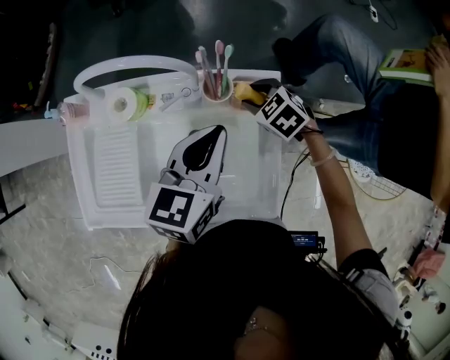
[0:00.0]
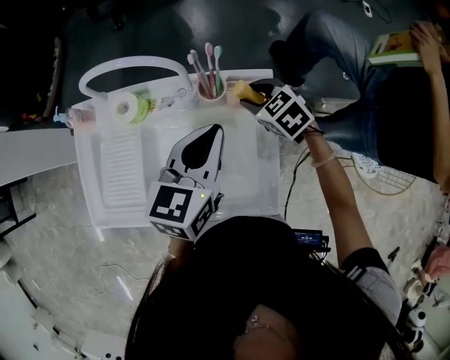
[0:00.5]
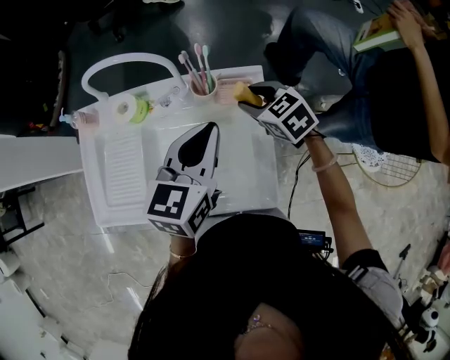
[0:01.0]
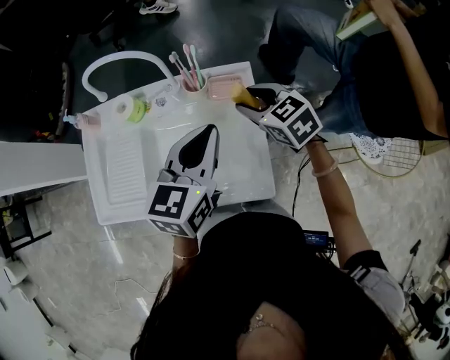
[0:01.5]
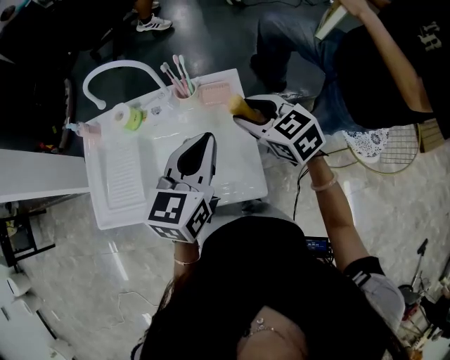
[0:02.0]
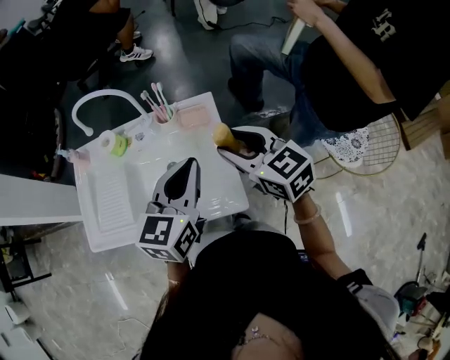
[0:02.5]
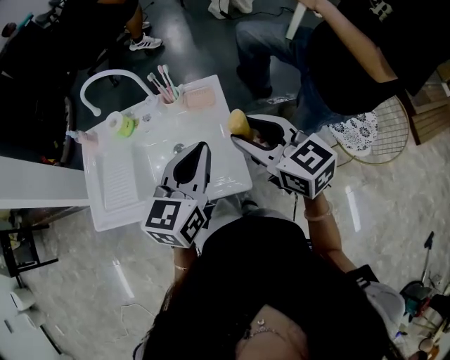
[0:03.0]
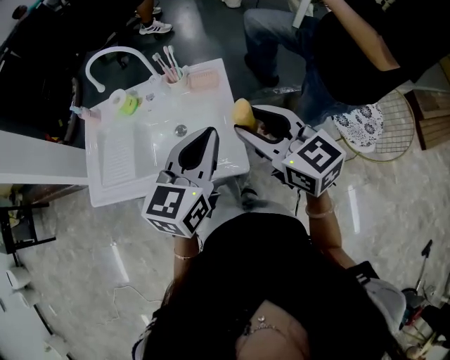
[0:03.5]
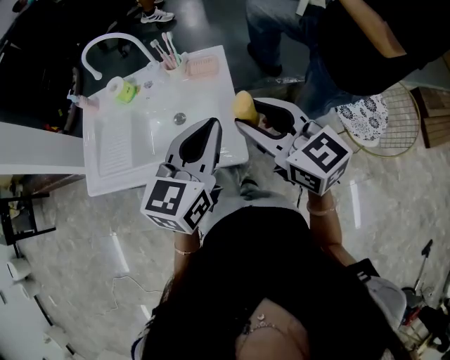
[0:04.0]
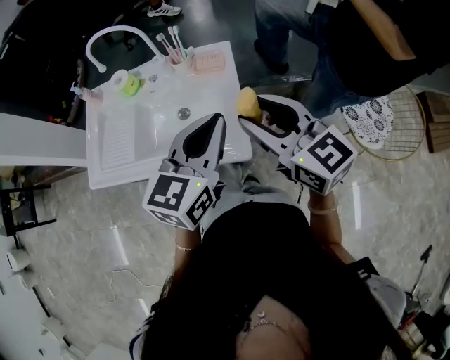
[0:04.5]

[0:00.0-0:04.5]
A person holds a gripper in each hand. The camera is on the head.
0:00.0 to 0:02.0: The left gripper travels backward and upward by about 15 cm. The right gripper heads upward and backward, covering some 25 cm, and rotates approximately 30 degrees.
0:02.0 to 0:04.5: The left gripper heads backward and to the right, covering some 15 cm, while the right gripper goes roughly 20 cm backward and upward, and swivels approximately 20 degrees.

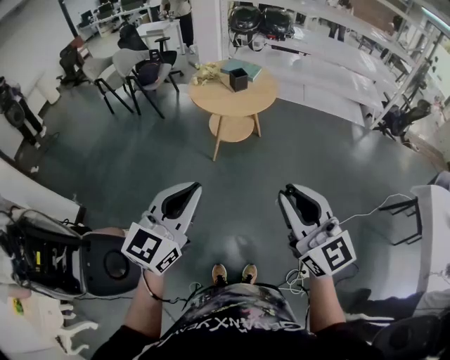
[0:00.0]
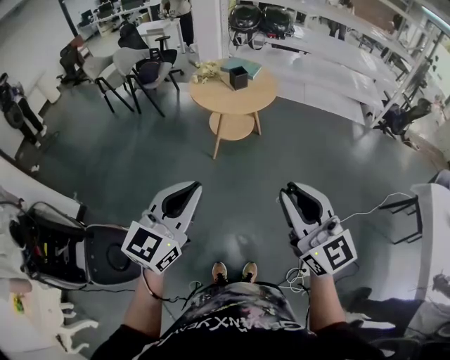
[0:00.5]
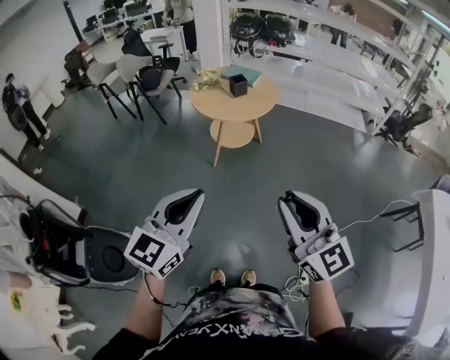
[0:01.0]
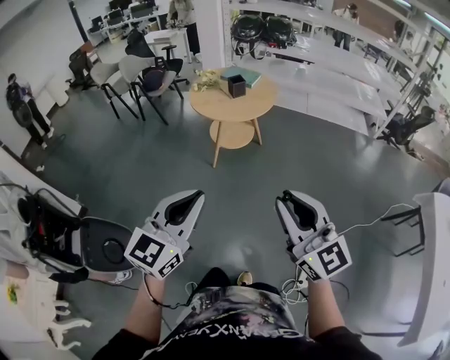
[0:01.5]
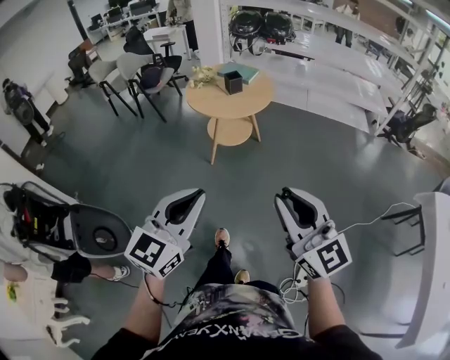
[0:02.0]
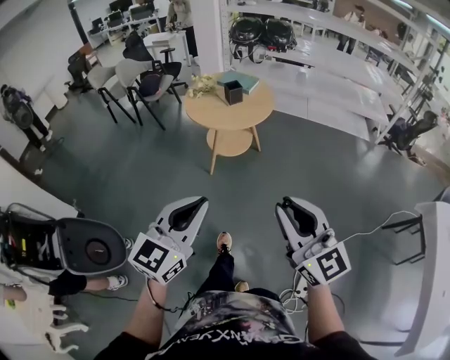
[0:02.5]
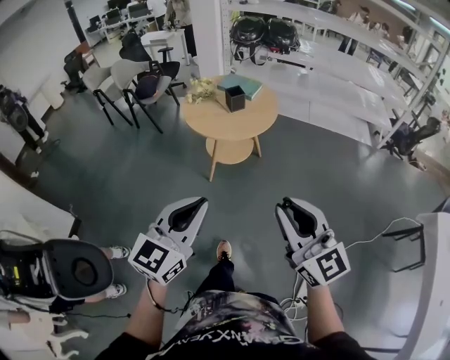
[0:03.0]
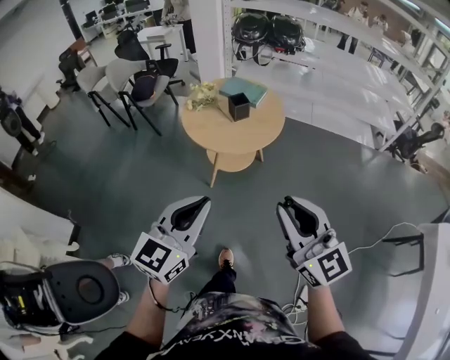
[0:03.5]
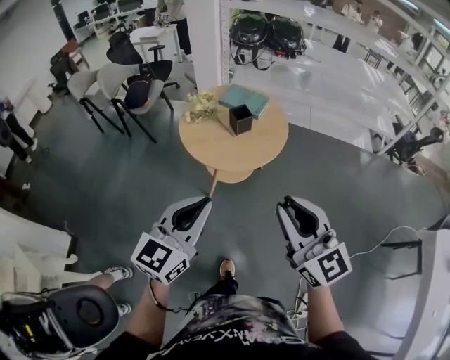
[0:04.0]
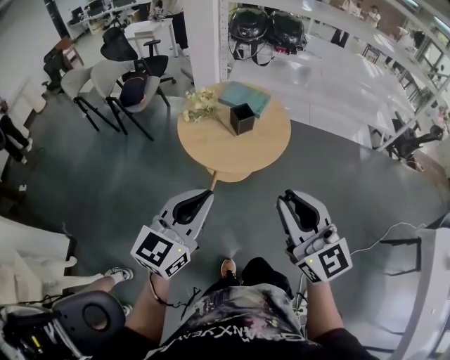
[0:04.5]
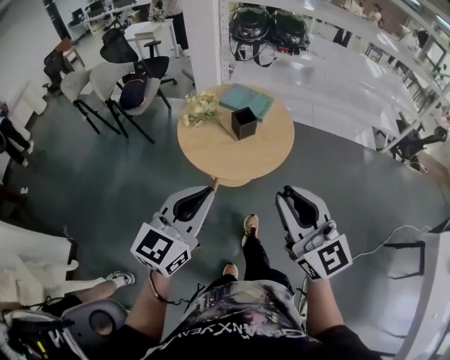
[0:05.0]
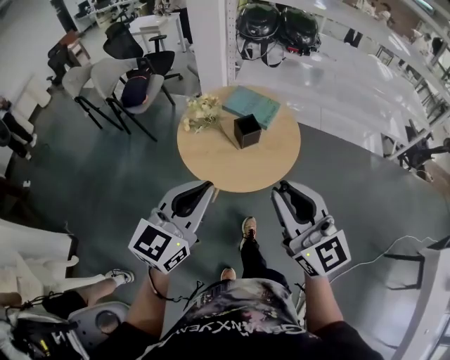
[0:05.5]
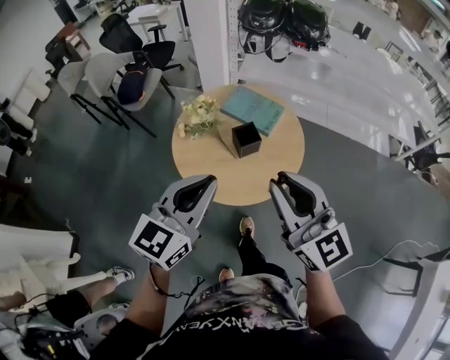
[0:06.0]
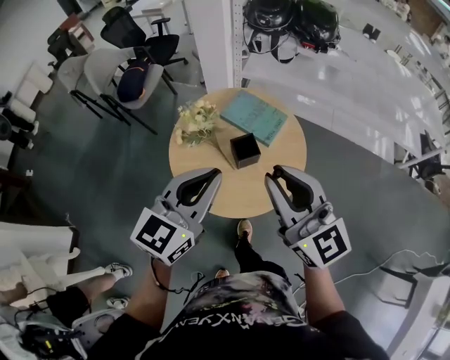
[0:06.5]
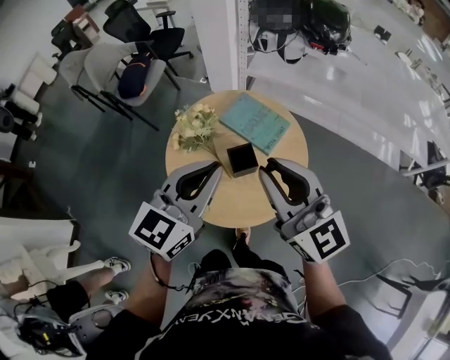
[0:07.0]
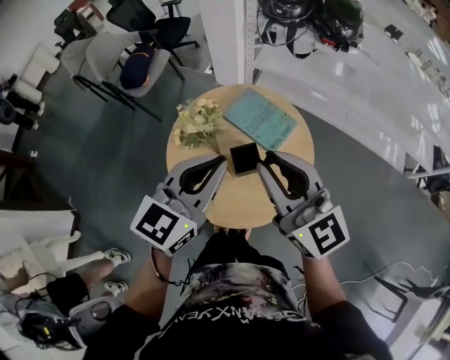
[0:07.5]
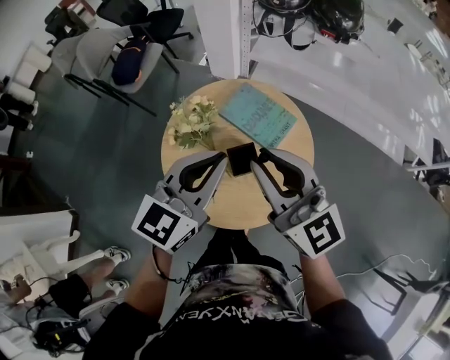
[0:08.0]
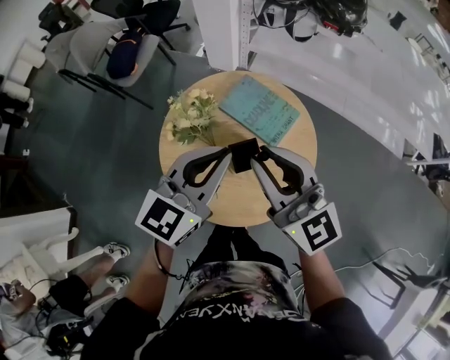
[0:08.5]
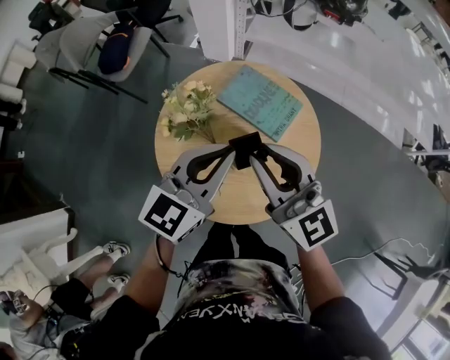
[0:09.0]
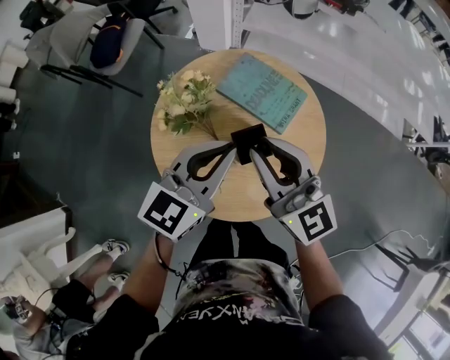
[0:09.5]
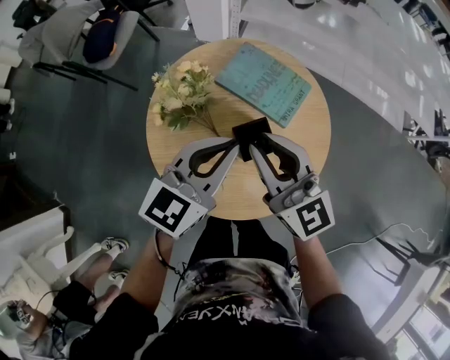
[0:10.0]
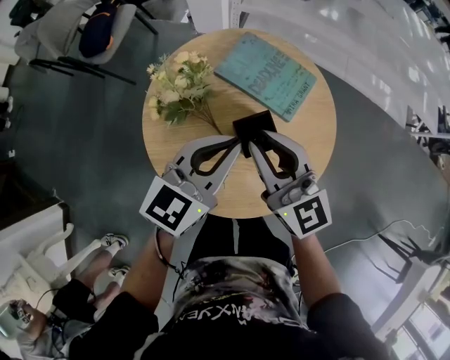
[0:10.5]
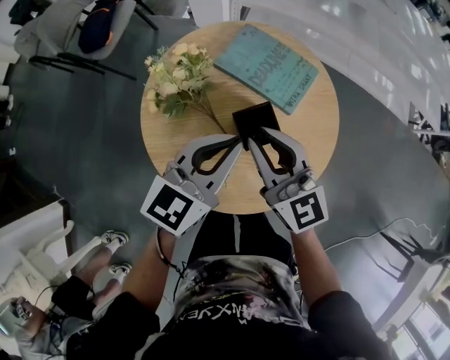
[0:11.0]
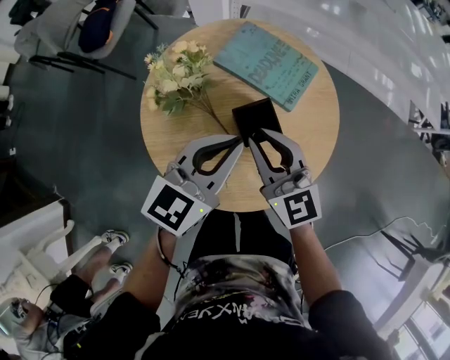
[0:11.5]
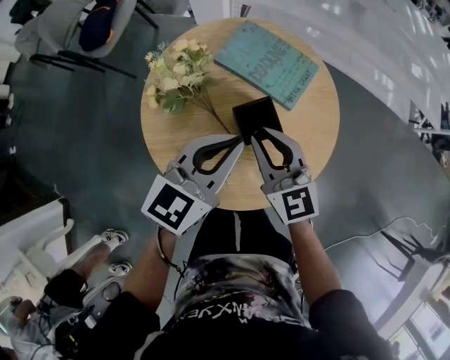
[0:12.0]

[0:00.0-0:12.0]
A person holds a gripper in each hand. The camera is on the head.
0:00.0 to 0:02.0: Both grippers travel together to the right, roughly 10 cm.
0:02.0 to 0:04.0: The two grippers go about 35 cm forward.
0:04.0 to 0:06.0: Both grippers travel together forward, some 30 cm.
0:06.0 to 0:08.0: Both grippers move forward, approximately 20 cm.
0:08.0 to 0:10.0: The two grippers go about 15 cm downward.
0:10.0 to 0:12.0: The right gripper is displaced downward by approximately 10 cm, while the left gripper ends up roughly 5 cm from where it was.

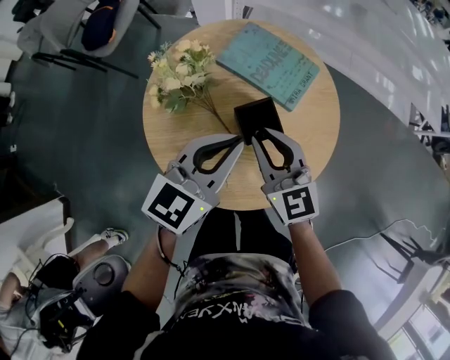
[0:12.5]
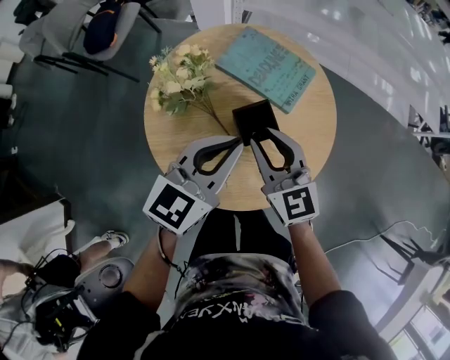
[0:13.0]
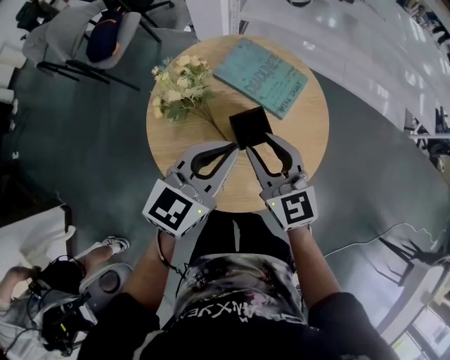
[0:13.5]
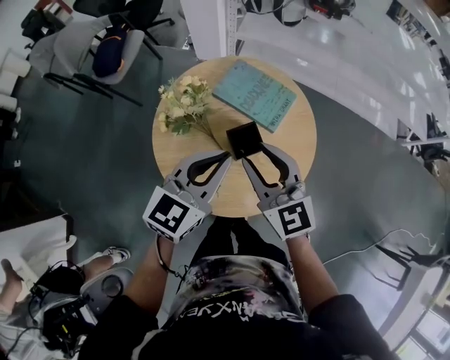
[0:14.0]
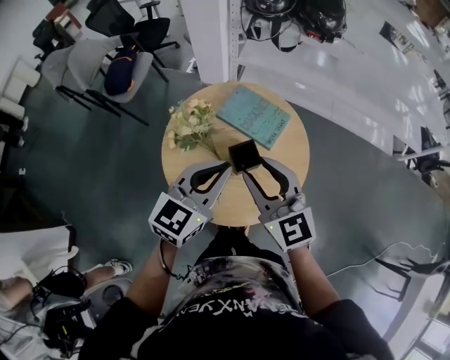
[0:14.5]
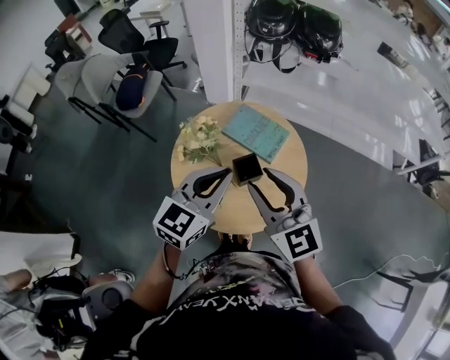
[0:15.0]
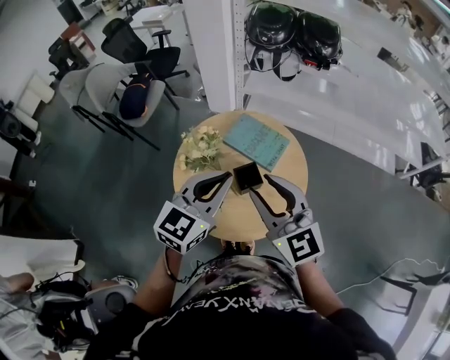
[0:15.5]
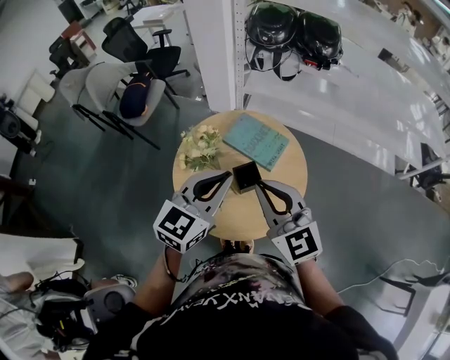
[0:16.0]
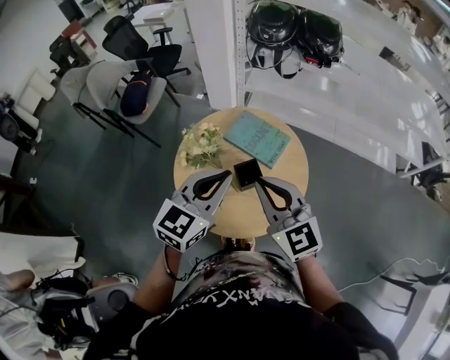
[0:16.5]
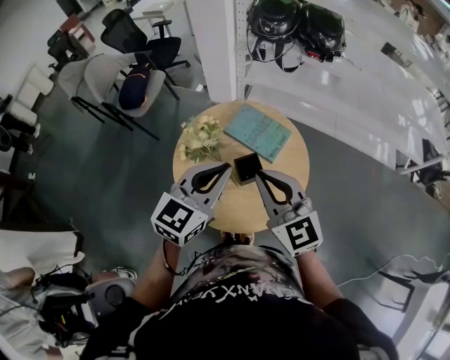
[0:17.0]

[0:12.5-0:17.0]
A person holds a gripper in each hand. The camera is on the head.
0:12.5 to 0:14.5: Both grippers move upward, some 15 cm.
0:14.5 to 0:17.0: The two grippers go approximately 5 cm upward. The right gripper closes.

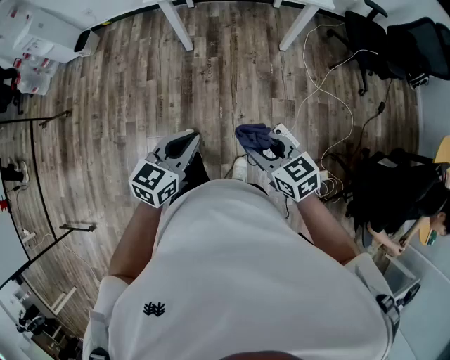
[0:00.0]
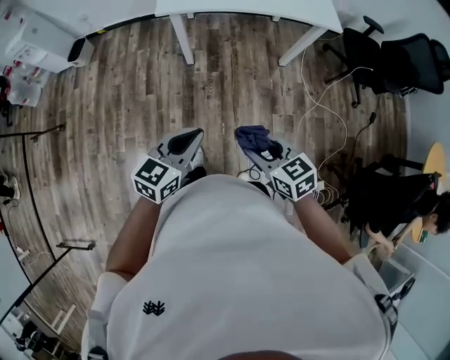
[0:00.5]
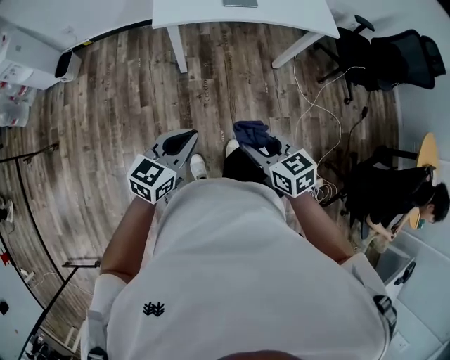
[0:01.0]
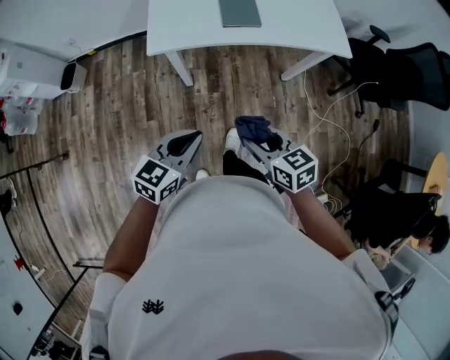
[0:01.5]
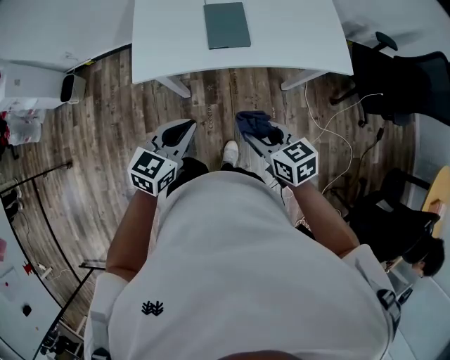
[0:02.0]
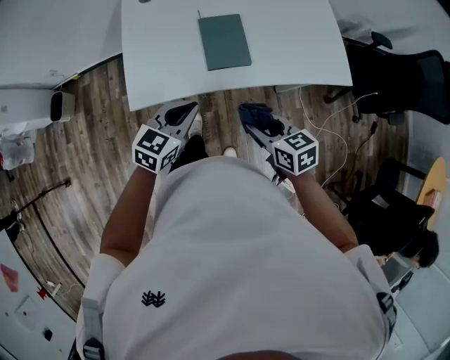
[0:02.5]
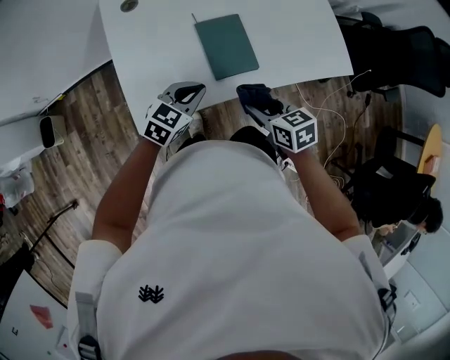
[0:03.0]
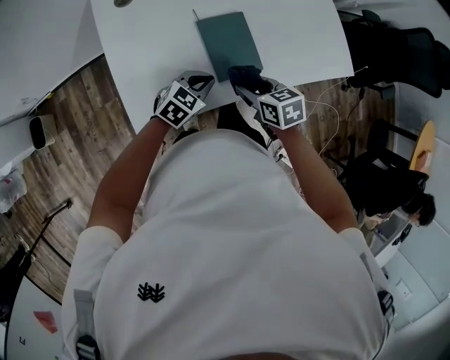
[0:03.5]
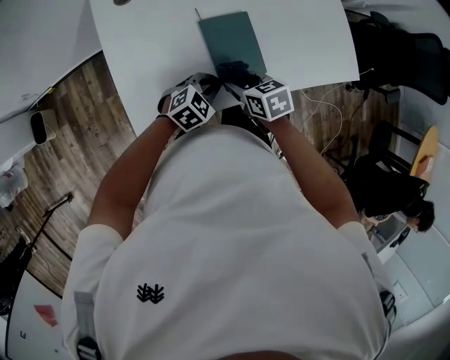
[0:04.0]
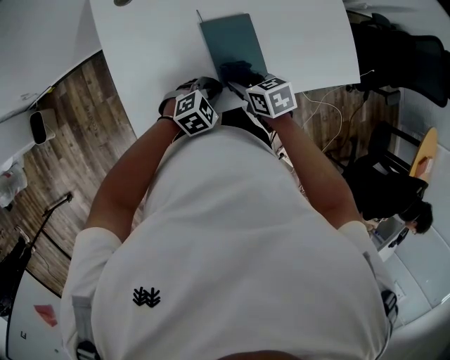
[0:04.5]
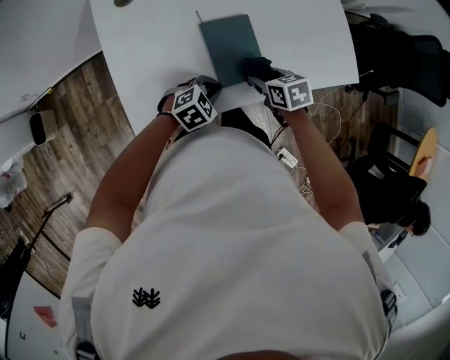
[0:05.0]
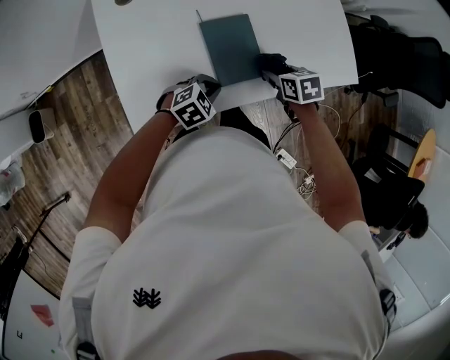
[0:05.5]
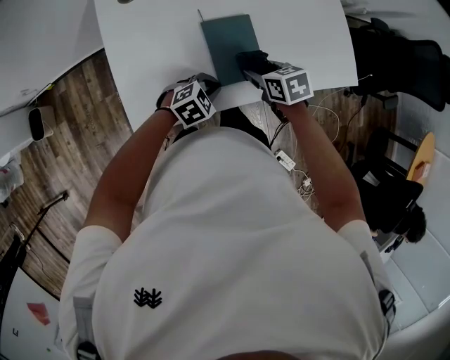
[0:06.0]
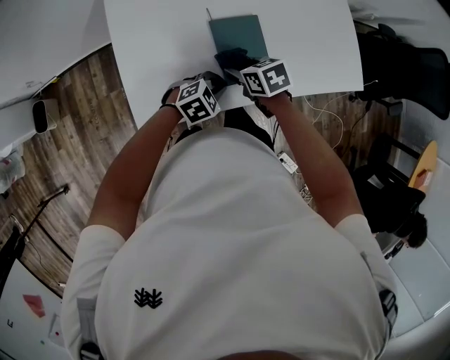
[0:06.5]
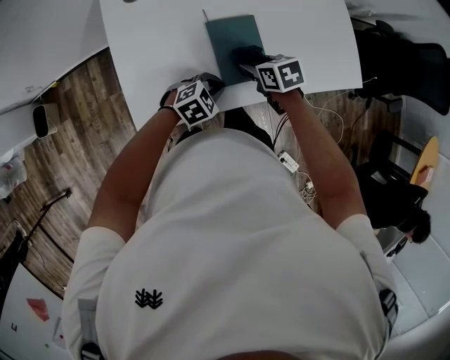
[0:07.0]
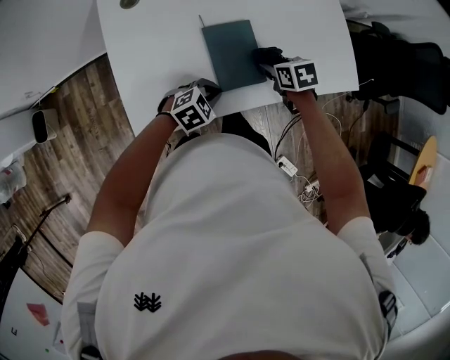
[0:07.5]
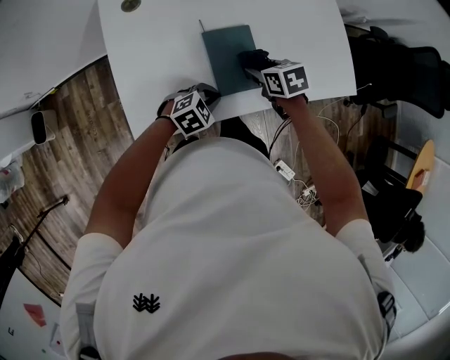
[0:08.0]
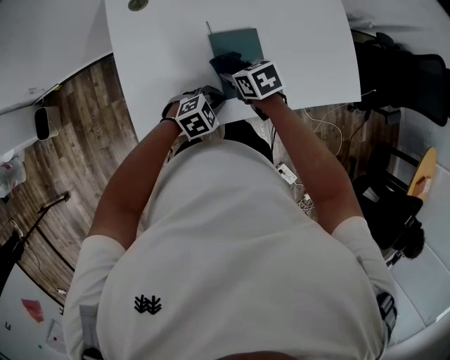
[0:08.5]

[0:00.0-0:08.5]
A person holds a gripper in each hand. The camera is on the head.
0:00.0 to 0:02.0: The two grippers travel together, forward, roughly 40 cm.
0:02.0 to 0:04.0: The left gripper goes roughly 30 cm forward and downward, and swivels approximately 40 degrees; the right gripper heads forward and to the left, covering roughly 30 cm, and rotates about 20 degrees.
